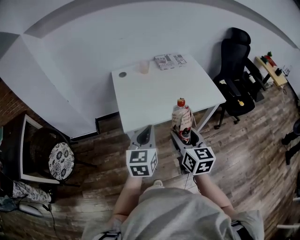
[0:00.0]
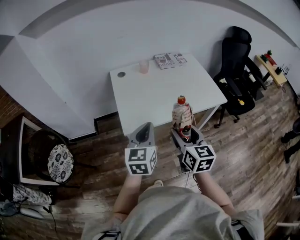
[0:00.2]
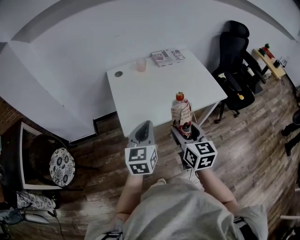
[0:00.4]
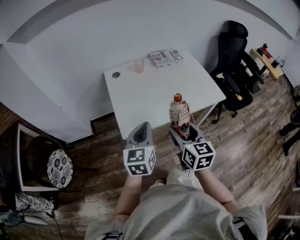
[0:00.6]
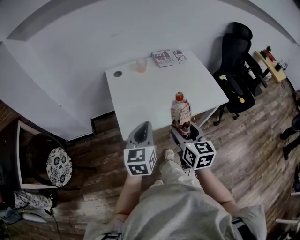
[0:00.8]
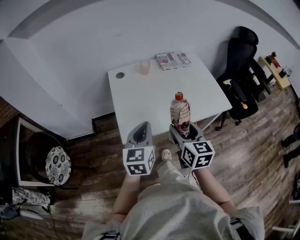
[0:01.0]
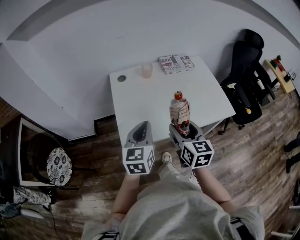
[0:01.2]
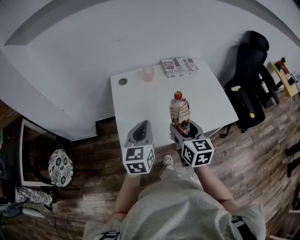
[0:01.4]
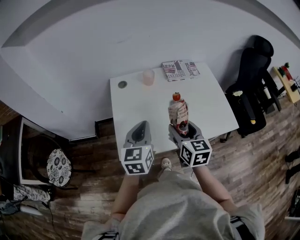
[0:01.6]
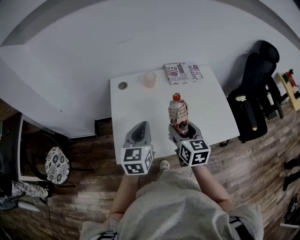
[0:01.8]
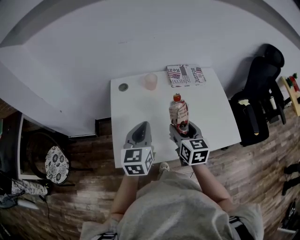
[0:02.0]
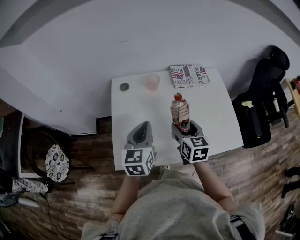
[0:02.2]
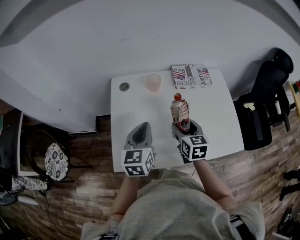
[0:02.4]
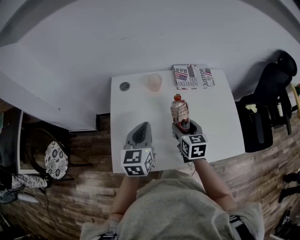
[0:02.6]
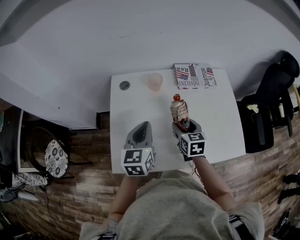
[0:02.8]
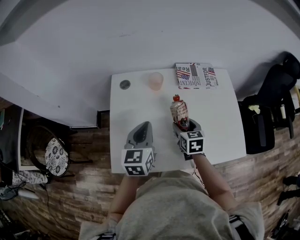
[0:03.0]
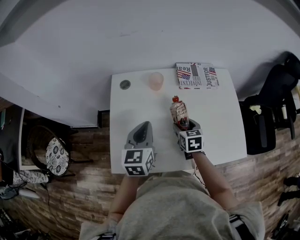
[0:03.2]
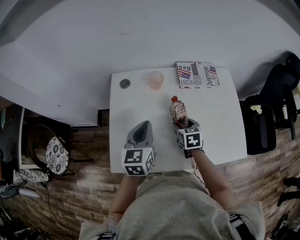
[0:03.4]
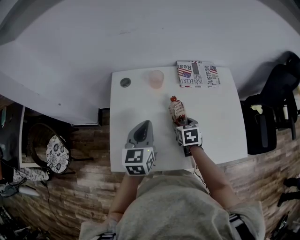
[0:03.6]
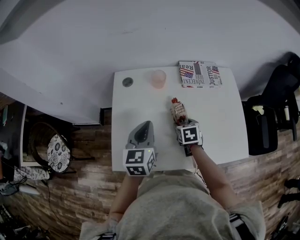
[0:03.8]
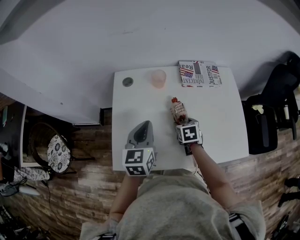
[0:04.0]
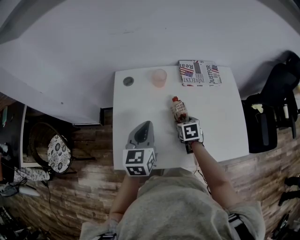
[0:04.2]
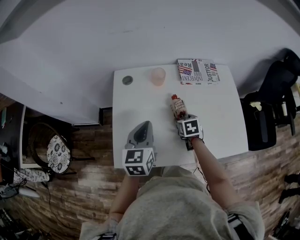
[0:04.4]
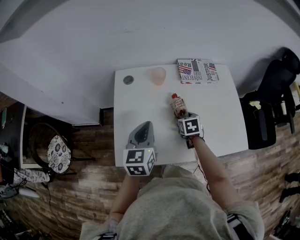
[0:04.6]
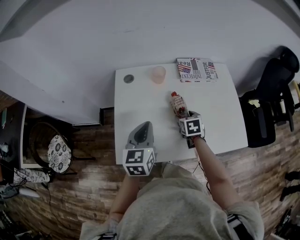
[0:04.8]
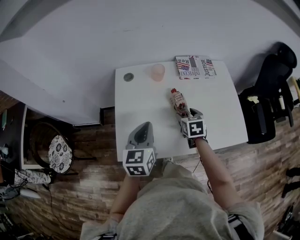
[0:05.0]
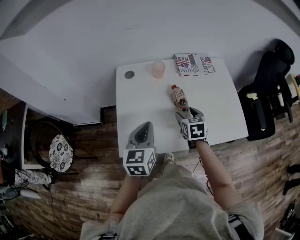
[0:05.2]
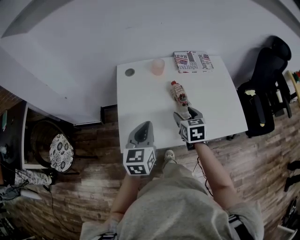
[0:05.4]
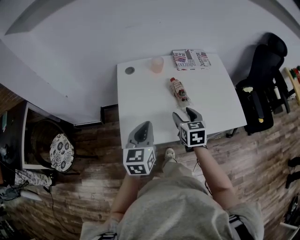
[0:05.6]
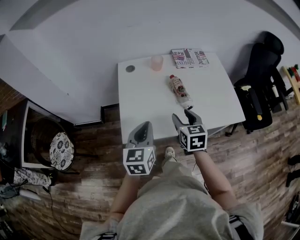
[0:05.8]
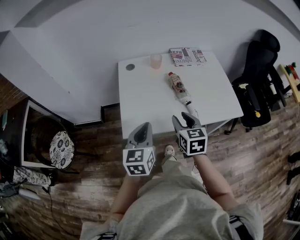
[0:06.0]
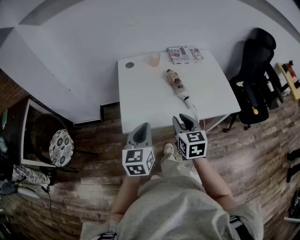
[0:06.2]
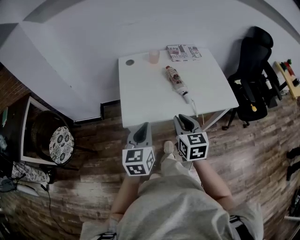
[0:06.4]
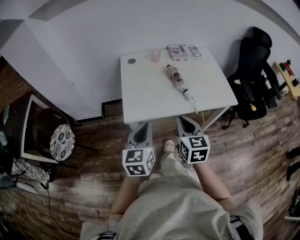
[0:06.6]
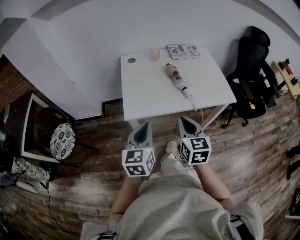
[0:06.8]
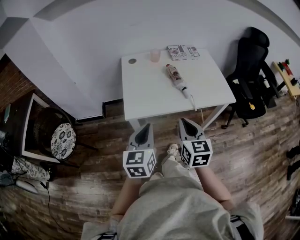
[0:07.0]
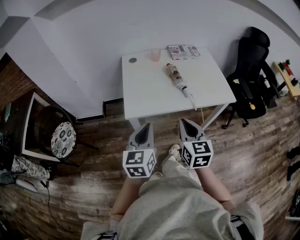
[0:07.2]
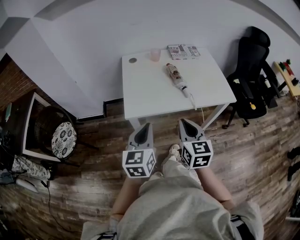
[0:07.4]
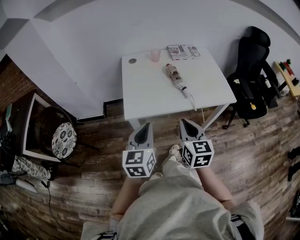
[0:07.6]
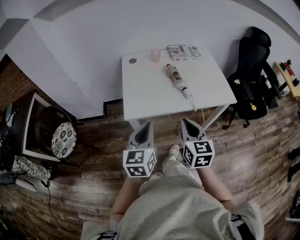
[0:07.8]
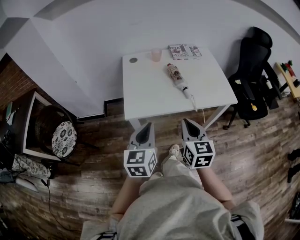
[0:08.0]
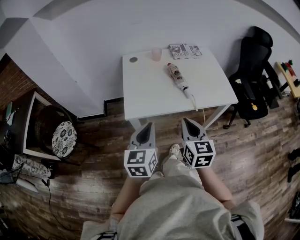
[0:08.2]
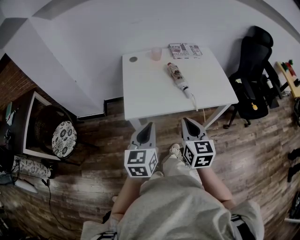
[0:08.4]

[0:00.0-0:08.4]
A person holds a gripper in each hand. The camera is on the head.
0.0 to 1.4 s: The grippers both shift forward by roughly 20 cm.
1.4 to 2.8 s: The right gripper goes approximately 25 cm forward and downward. The left gripper is displaced forward by some 15 cm.
2.8 to 4.2 s: The right gripper goes approximately 10 cm downward, and swivels some 20 degrees.
4.2 to 5.6 s: The right gripper is displaced upward and backward by roughly 20 cm, and rotates approximately 20 degrees; the left gripper moves backward, about 15 cm.
5.6 to 7.0 s: Both grippers move backward, about 25 cm. The right gripper closes up.
7.0 to 8.4 s: The grippers move only a little.

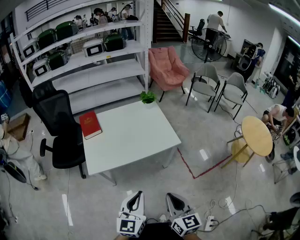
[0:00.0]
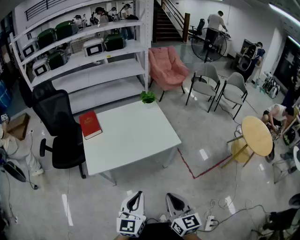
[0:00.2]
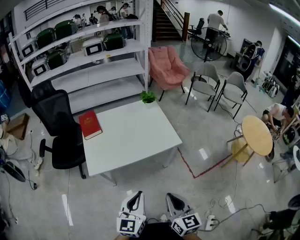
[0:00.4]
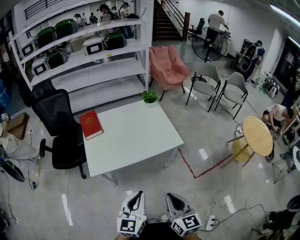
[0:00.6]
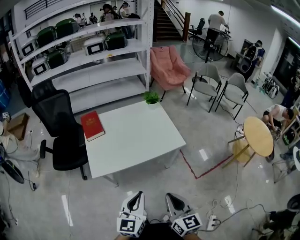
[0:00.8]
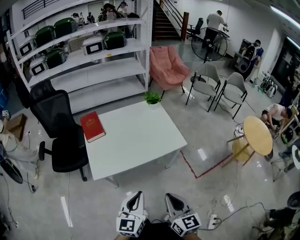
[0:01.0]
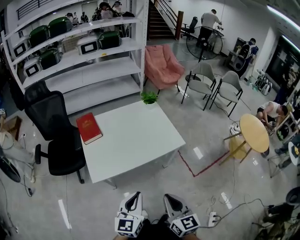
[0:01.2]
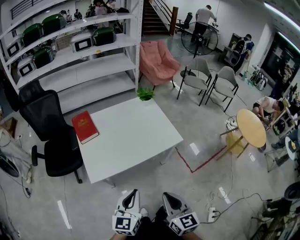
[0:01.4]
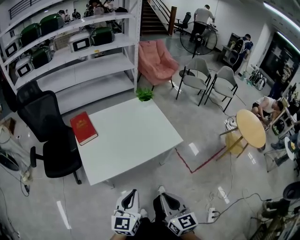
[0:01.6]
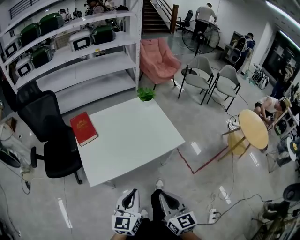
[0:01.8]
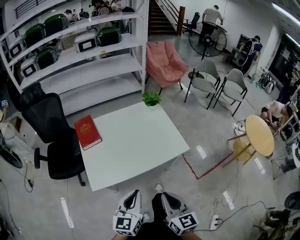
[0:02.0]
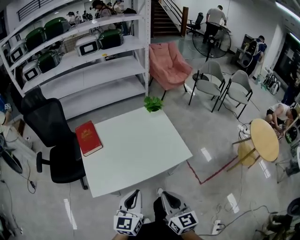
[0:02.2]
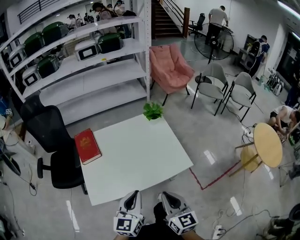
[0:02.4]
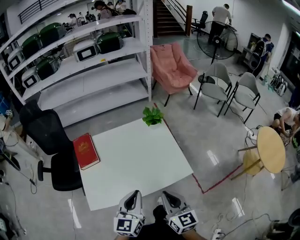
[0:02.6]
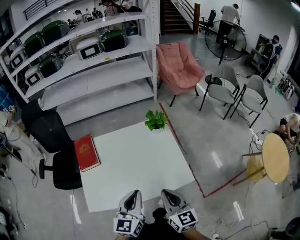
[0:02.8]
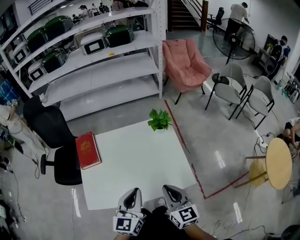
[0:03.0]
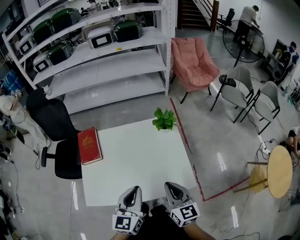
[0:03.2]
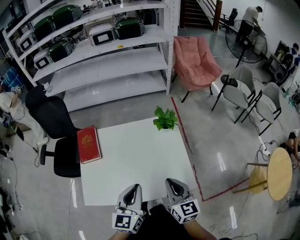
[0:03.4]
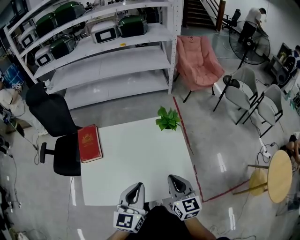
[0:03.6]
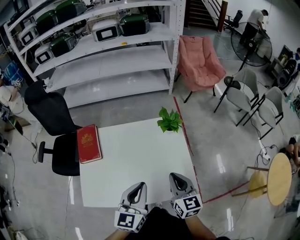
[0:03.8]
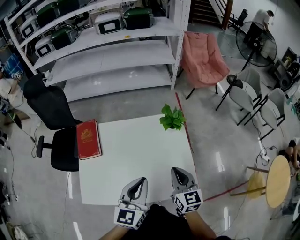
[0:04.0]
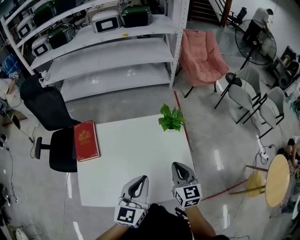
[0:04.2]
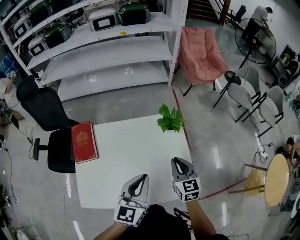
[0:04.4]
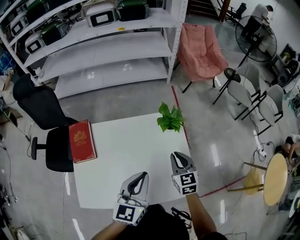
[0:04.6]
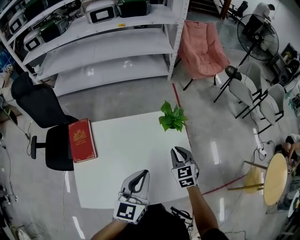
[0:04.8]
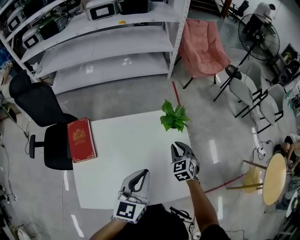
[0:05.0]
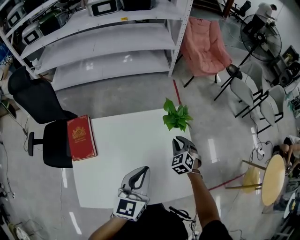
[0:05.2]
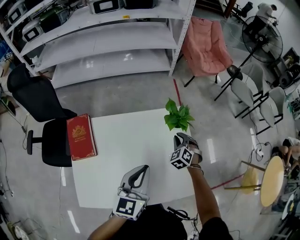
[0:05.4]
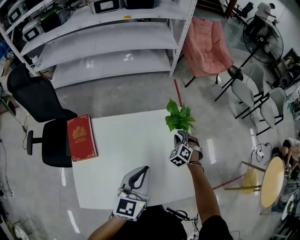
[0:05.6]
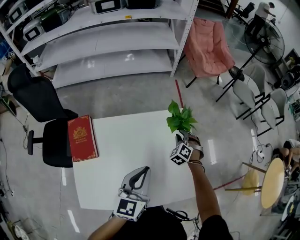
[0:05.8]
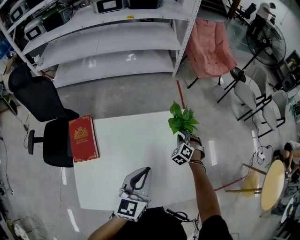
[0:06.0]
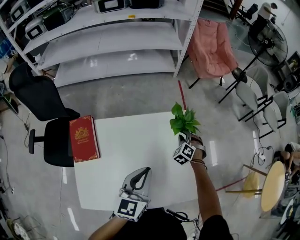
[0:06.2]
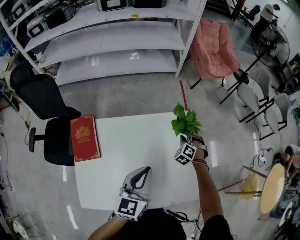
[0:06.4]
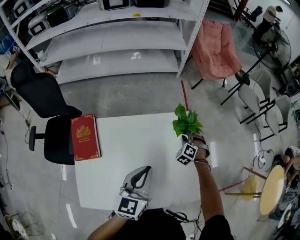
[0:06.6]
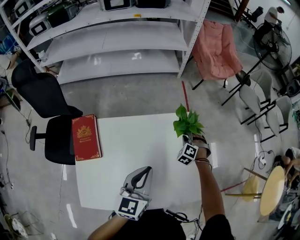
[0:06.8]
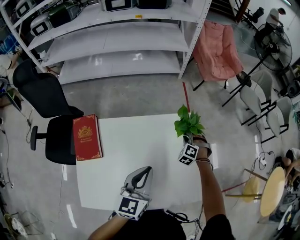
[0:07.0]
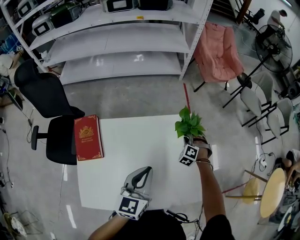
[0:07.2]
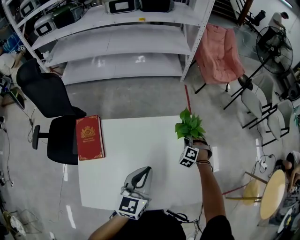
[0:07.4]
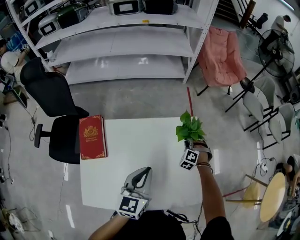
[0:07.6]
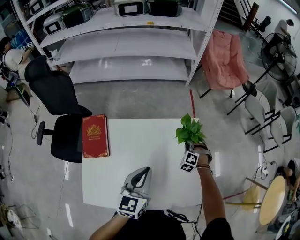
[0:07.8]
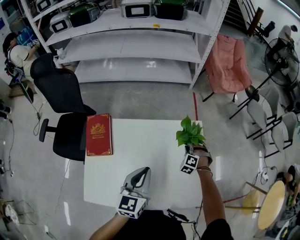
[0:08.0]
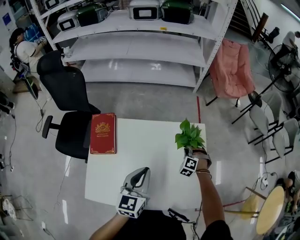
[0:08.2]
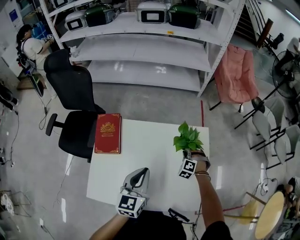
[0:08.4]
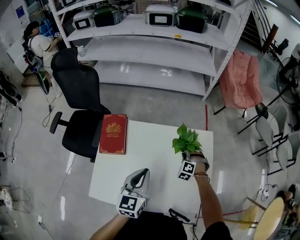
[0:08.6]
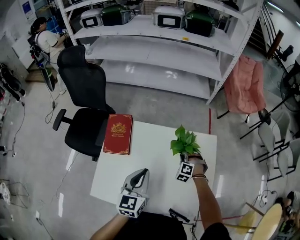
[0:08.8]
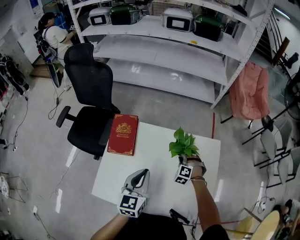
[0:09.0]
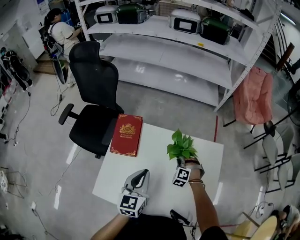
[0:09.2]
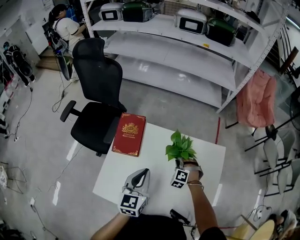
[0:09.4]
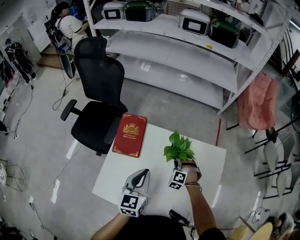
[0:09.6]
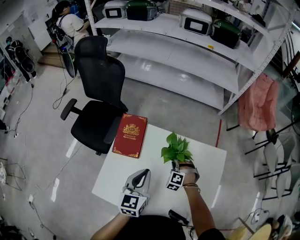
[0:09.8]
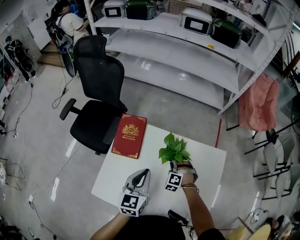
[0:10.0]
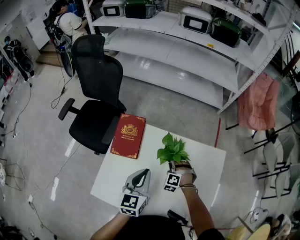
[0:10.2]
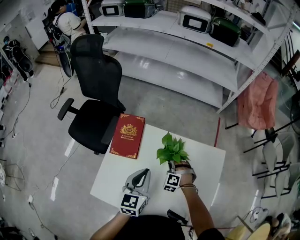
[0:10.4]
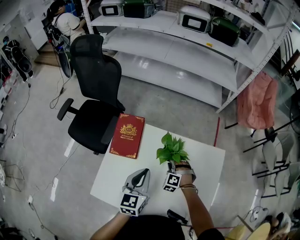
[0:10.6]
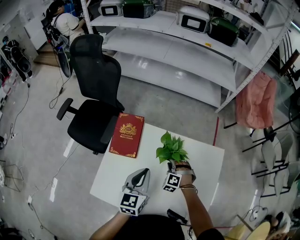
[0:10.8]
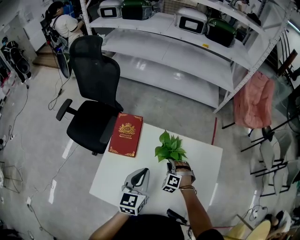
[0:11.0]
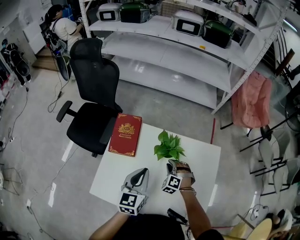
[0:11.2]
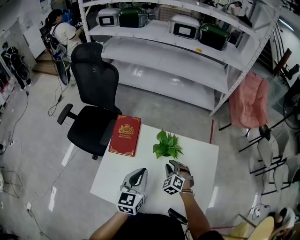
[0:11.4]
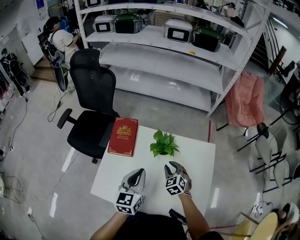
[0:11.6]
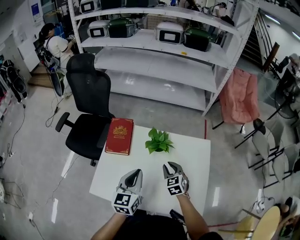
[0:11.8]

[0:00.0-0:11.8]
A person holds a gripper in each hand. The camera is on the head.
0.0 to 1.4 s: Both grippers travel together to the left and forward, roughly 15 cm.
1.4 to 3.0 s: Both grippers move forward, approximately 35 cm.
3.0 to 4.4 s: The left gripper travels forward by about 15 cm. The right gripper moves forward, some 20 cm.
4.4 to 6.0 s: The left gripper moves forward, approximately 5 cm; the right gripper travels forward and downward by approximately 25 cm, and rotates around the line of its fingers by about 50 degrees, counterclockwise from behind.
6.0 to 7.4 s: The grippers make only small movements.
7.4 to 8.8 s: Both grippers move to the left and backward, approximately 15 cm.
8.8 to 10.4 s: The left gripper is displaced to the left by approximately 5 cm; the right gripper shifts some 15 cm to the left.
10.4 to 11.8 s: The right gripper travels upward and backward by roughly 15 cm, and rotates around the line of its fingers by about 60 degrees, clockwise from behind. Meanwhile the left gripper heads backward, covering about 10 cm.

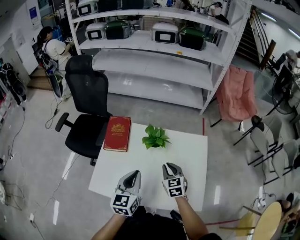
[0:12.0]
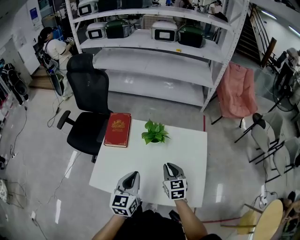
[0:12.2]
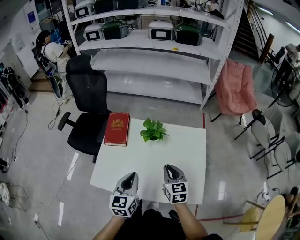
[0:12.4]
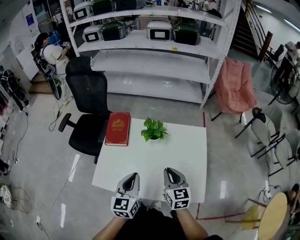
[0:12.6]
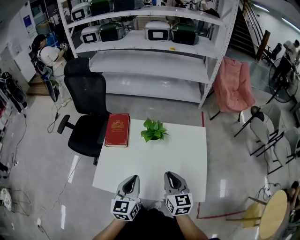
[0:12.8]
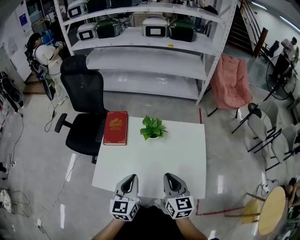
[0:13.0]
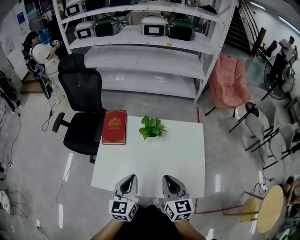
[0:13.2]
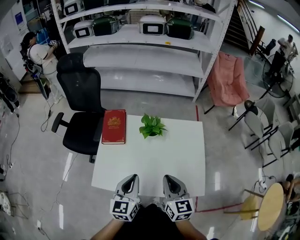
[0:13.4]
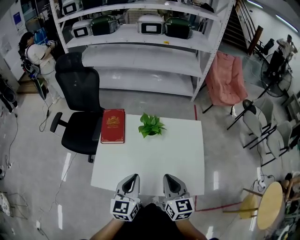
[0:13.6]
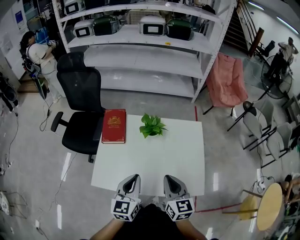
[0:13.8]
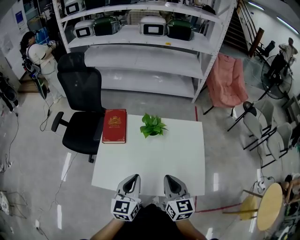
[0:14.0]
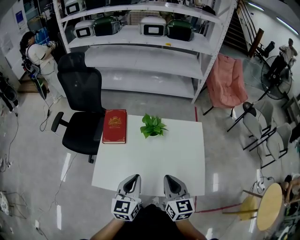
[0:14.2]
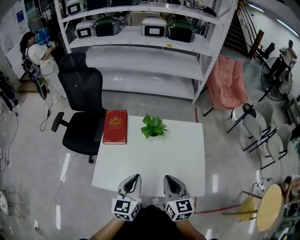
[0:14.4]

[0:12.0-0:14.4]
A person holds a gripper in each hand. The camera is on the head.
12.0 to 13.2 s: The right gripper goes roughly 20 cm backward and upward, and rotates some 20 degrees. The left gripper travels backward by some 5 cm.
13.2 to 14.4 s: The grippers make only small movements.

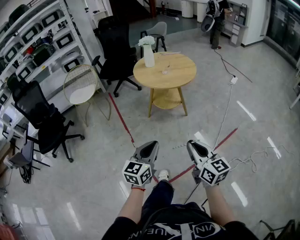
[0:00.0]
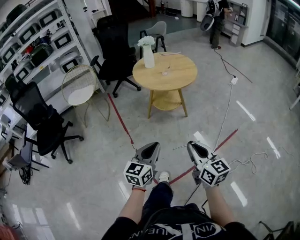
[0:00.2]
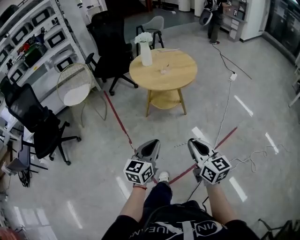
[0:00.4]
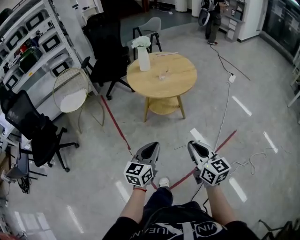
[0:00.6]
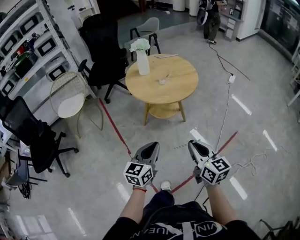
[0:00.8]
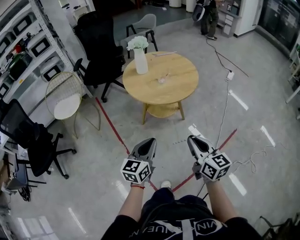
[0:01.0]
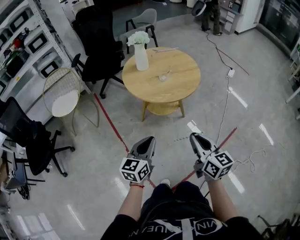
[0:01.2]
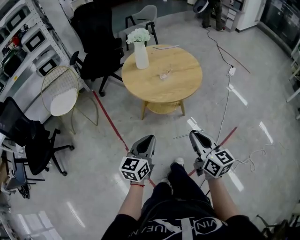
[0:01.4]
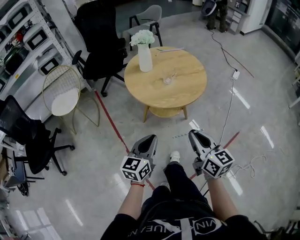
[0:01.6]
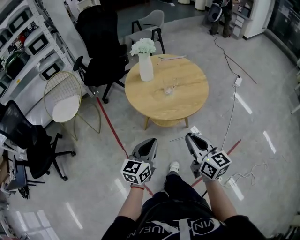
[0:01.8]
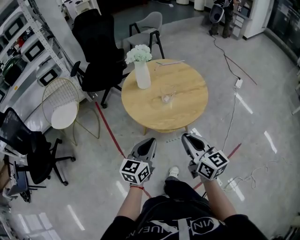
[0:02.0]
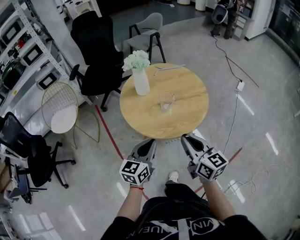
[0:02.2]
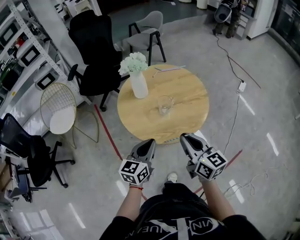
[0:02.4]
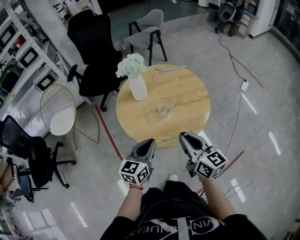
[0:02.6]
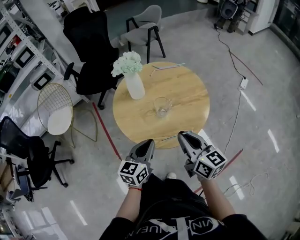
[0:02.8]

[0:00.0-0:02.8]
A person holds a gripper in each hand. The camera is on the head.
0.0 to 1.4 s: The two grippers go approximately 30 cm forward.
1.4 to 2.8 s: Both grippers move forward, about 30 cm.
